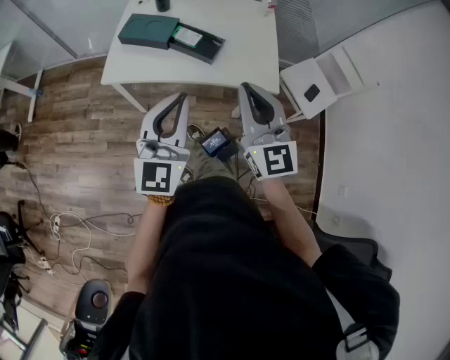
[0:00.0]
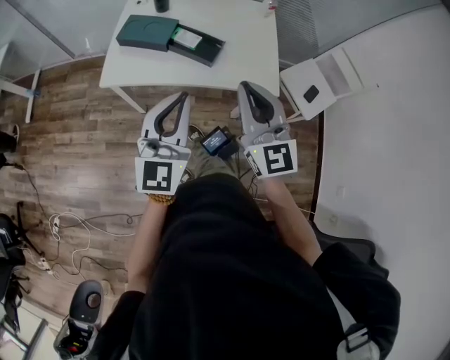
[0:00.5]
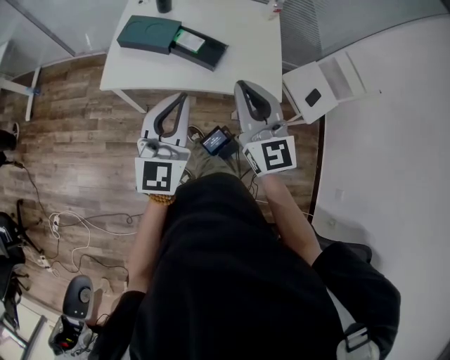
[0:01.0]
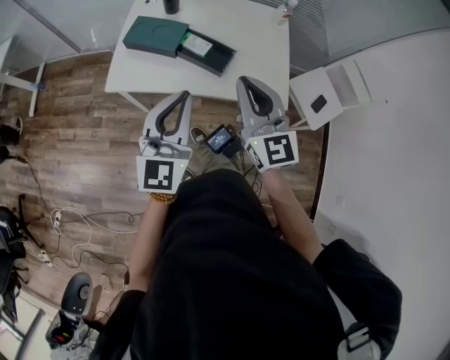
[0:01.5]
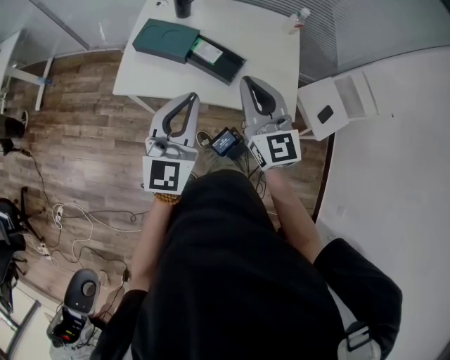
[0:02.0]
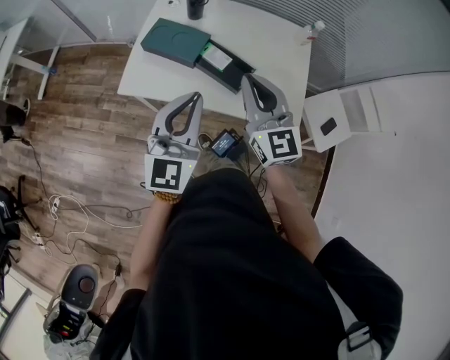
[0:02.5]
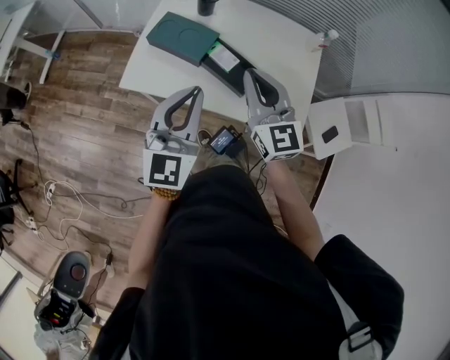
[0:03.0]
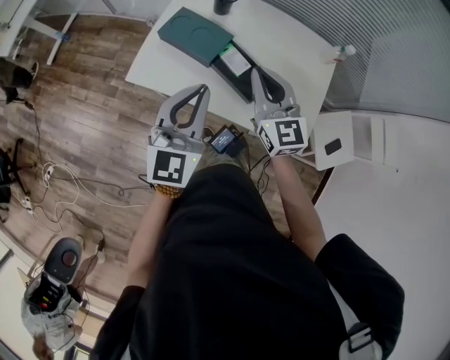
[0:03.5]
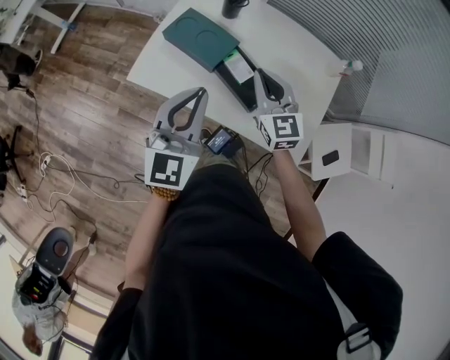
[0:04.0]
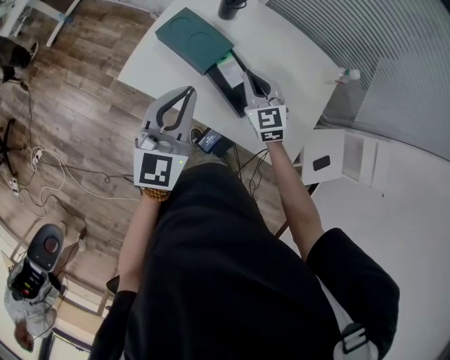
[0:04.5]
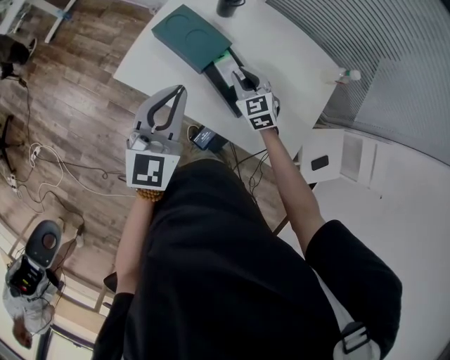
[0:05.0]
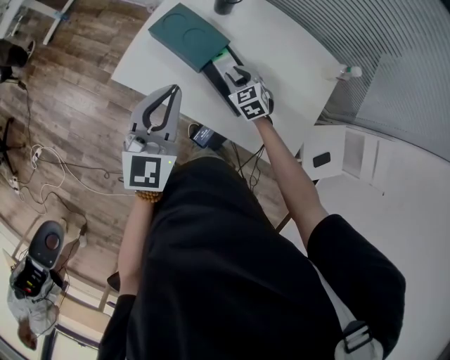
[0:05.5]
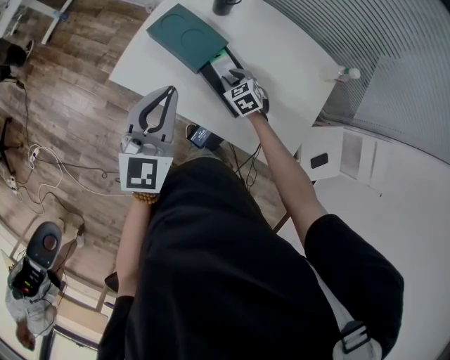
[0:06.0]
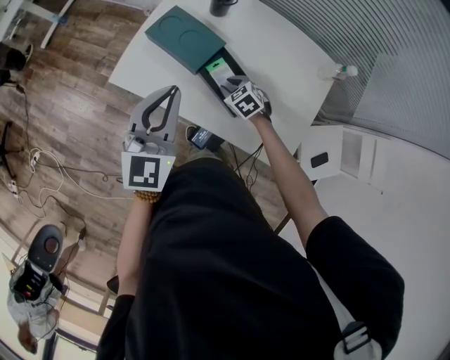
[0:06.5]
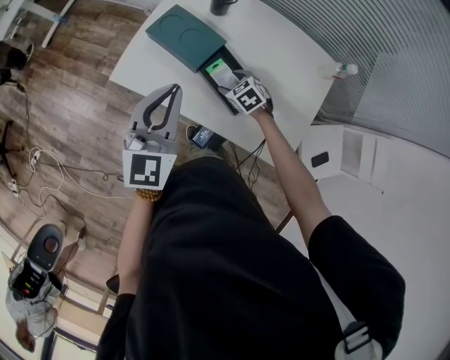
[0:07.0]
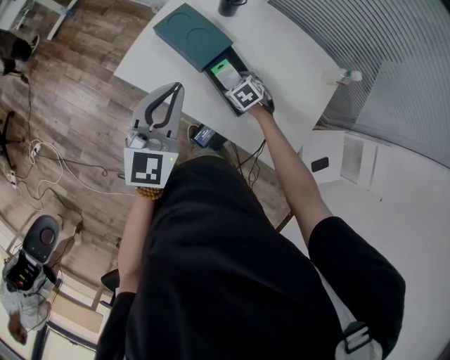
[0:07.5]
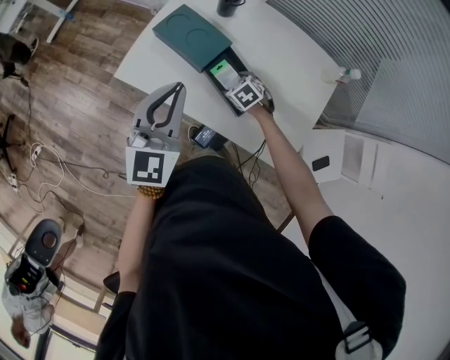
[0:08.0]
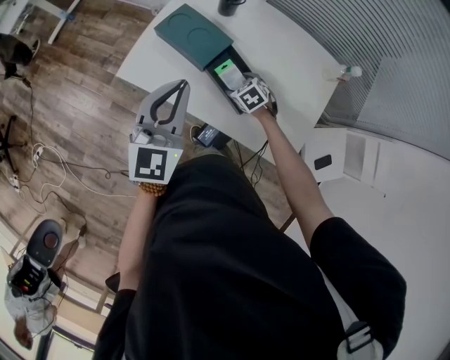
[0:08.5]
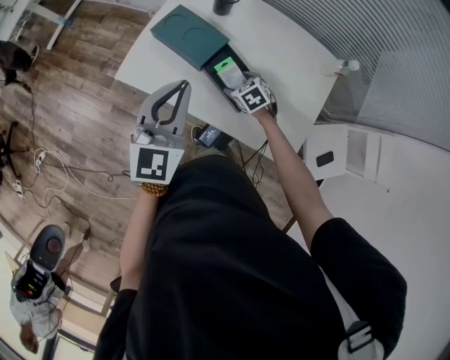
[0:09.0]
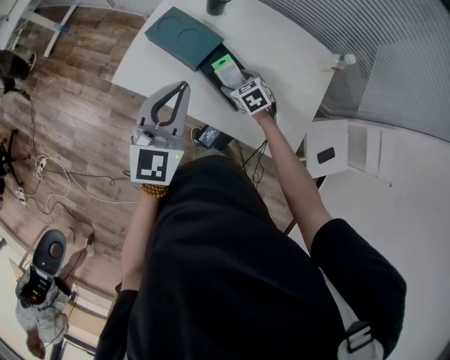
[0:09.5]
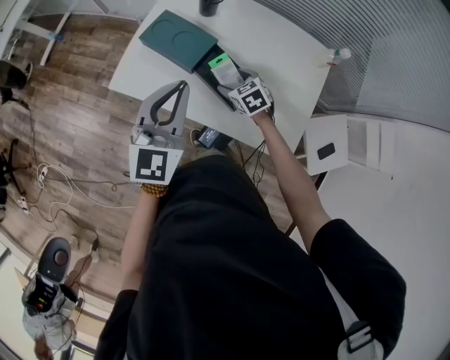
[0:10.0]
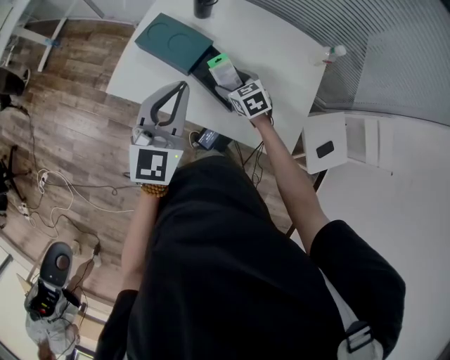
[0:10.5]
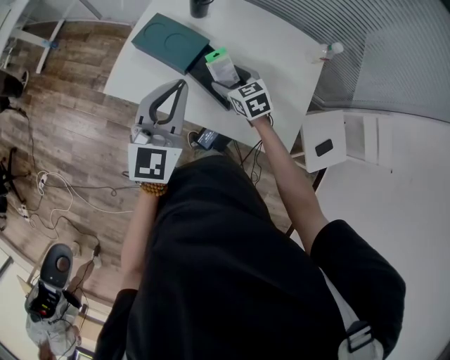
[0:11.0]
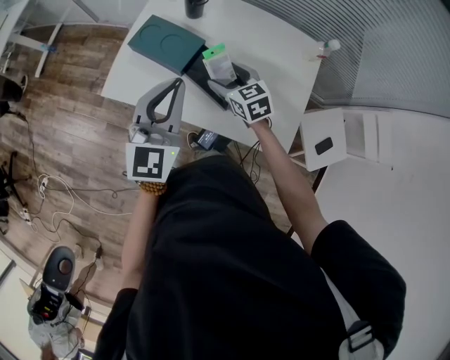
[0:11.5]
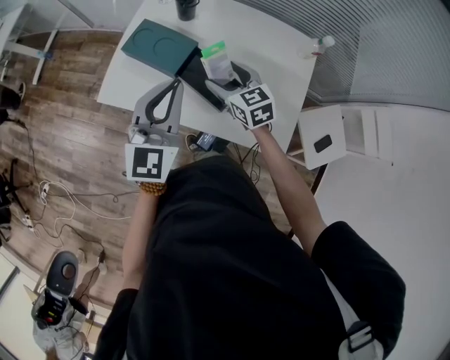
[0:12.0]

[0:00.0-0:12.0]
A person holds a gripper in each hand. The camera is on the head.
0:00.0 to 0:02.0: Both grippers move forward, about 15 cm.
0:02.0 to 0:04.0: The right gripper is displaced forward and downward by roughly 25 cm, and rotates roughly 20 degrees, while the left gripper moves forward, about 15 cm.
0:04.0 to 0:06.0: The left gripper changes place by approximately 5 cm. Meanwhile the right gripper moves downward, roughly 25 cm, and tilts its fingers roughly 40 degrees downward.
0:06.0 to 0:08.0: The right gripper opens its fingers.
0:08.0 to 0:10.0: The right gripper heads upward, covering roughly 5 cm.
0:10.0 to 0:12.0: The right gripper travels upward by approximately 10 cm, and changes its angle by some 20 degrees.

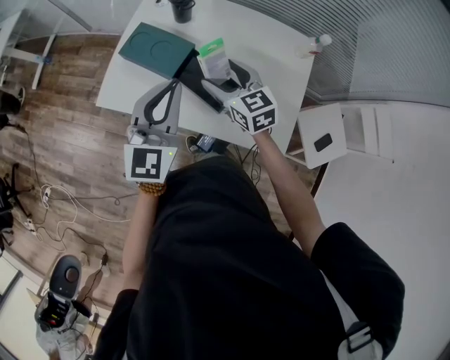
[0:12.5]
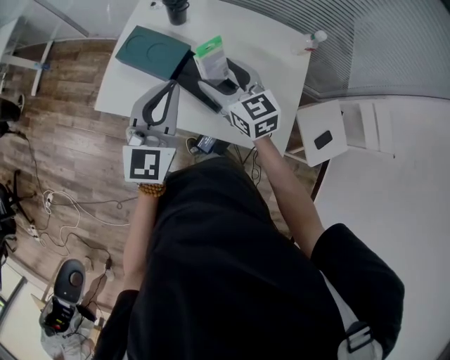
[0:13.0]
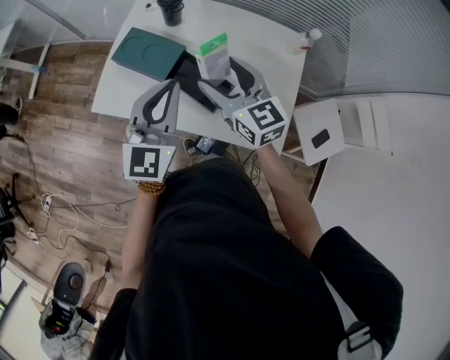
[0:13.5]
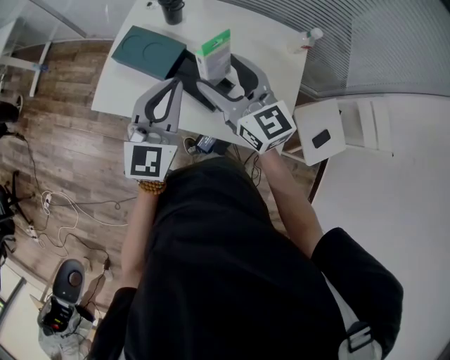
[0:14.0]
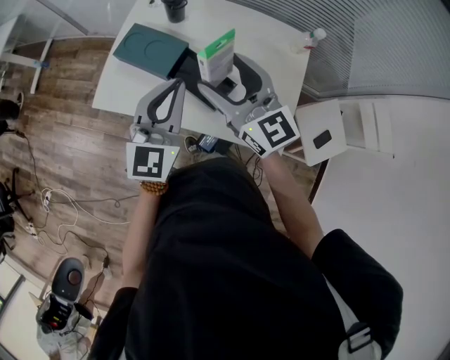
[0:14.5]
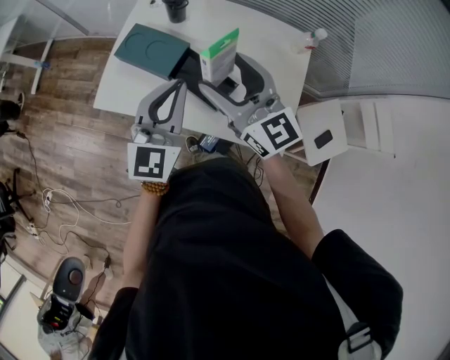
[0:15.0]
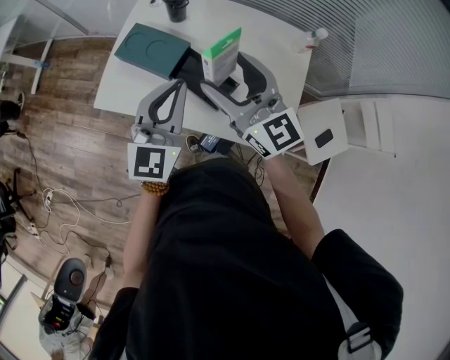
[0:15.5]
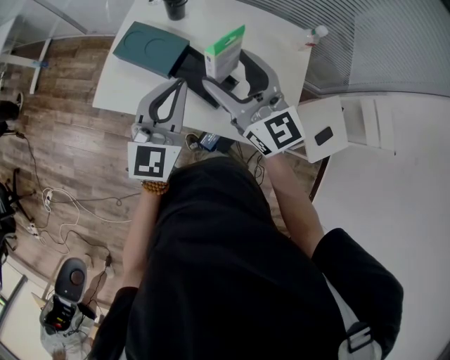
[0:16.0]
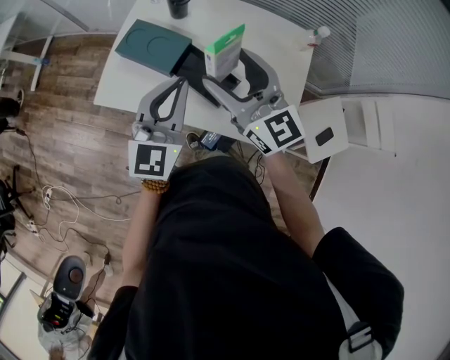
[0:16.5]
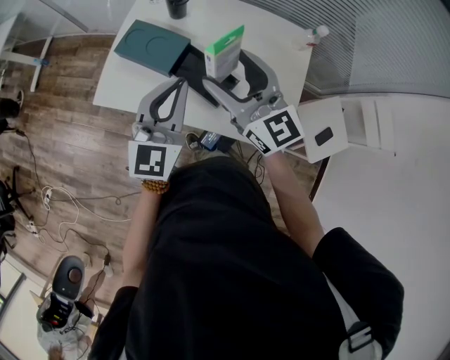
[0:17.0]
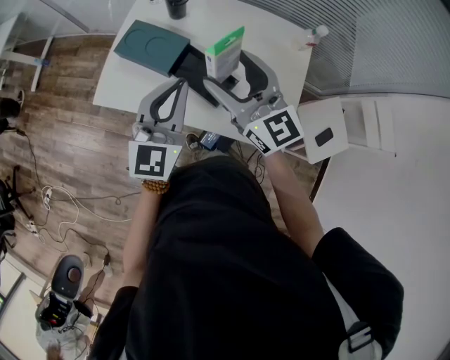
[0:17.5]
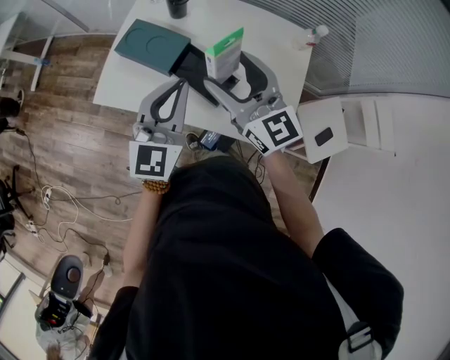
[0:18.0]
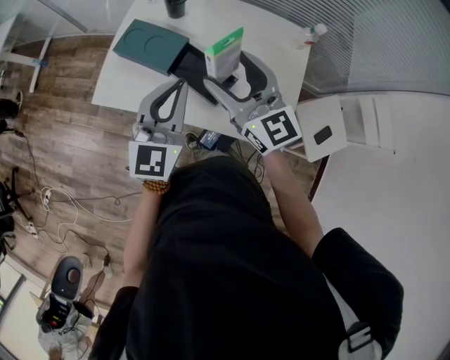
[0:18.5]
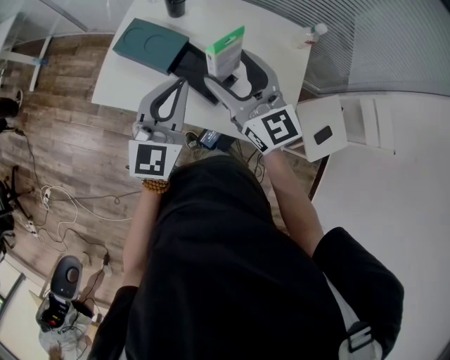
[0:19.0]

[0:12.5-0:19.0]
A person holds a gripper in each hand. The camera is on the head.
0:12.5 to 0:14.5: The right gripper heads upward, covering about 15 cm, and changes its angle by approximately 20 degrees.
0:14.5 to 0:19.0: Neither gripper changes place.

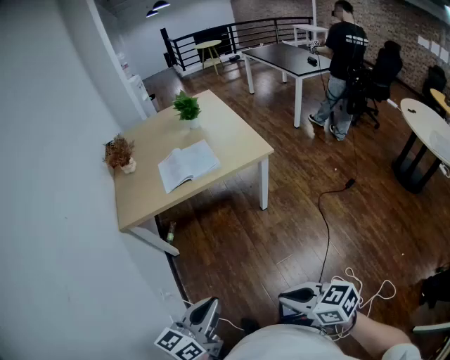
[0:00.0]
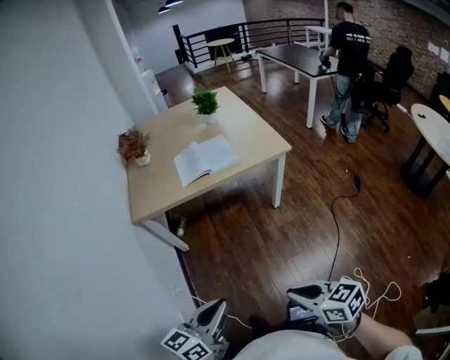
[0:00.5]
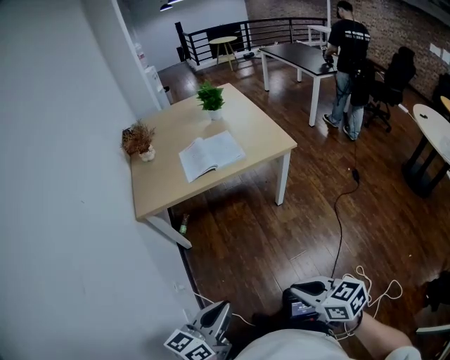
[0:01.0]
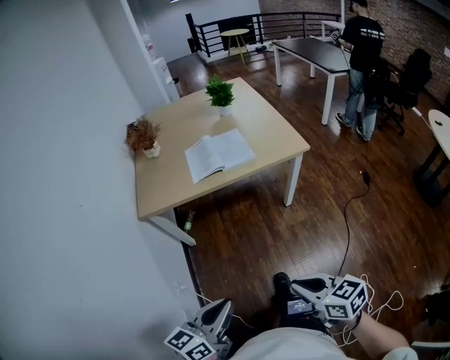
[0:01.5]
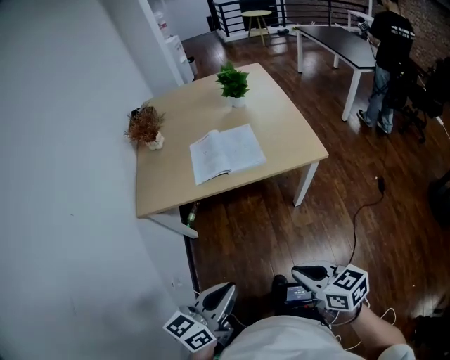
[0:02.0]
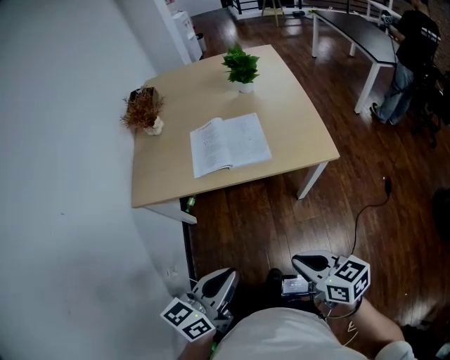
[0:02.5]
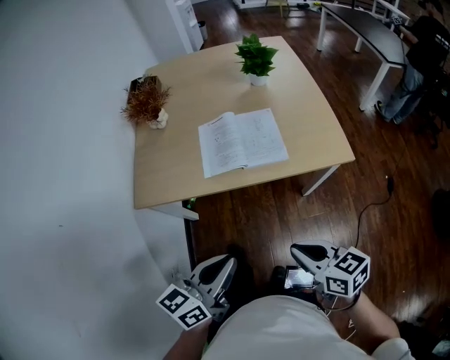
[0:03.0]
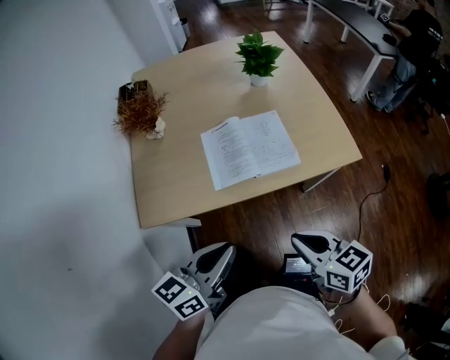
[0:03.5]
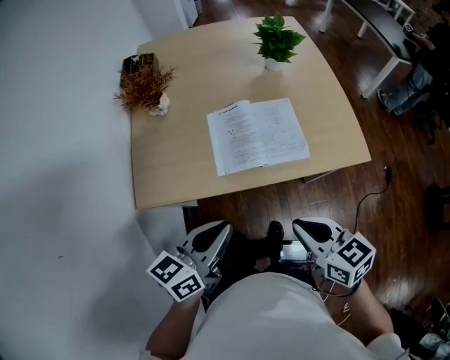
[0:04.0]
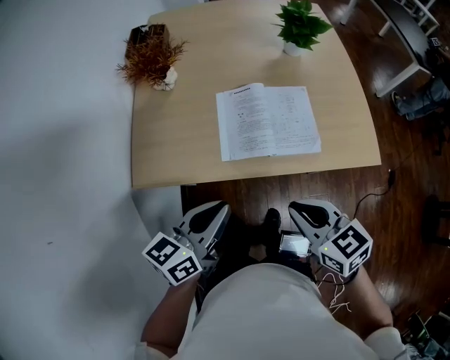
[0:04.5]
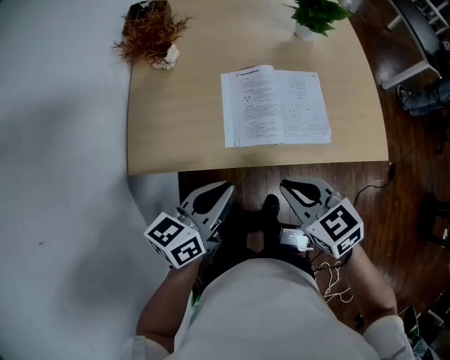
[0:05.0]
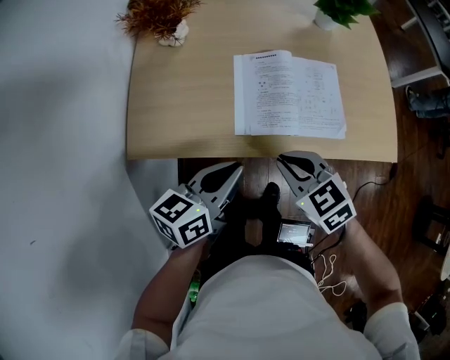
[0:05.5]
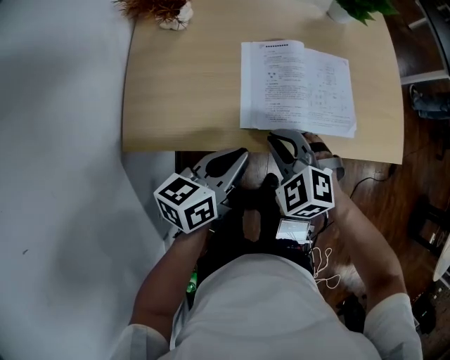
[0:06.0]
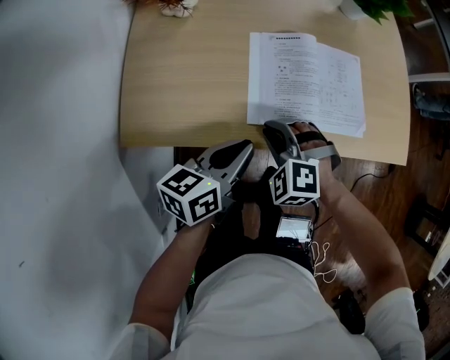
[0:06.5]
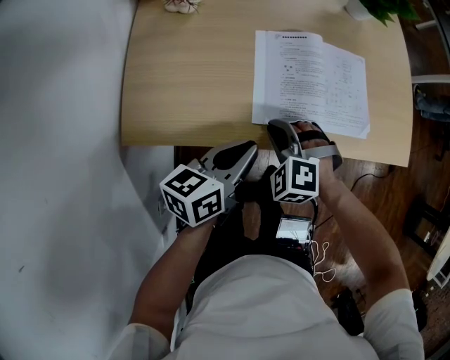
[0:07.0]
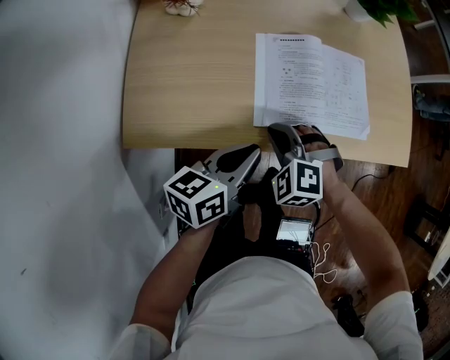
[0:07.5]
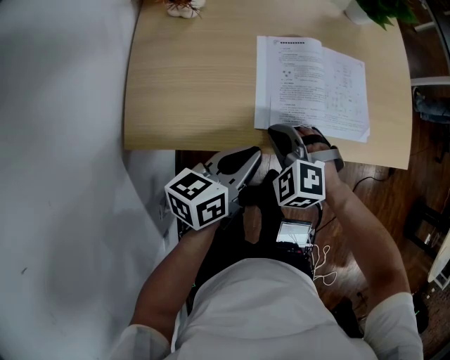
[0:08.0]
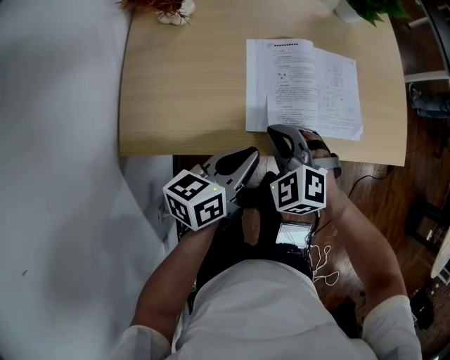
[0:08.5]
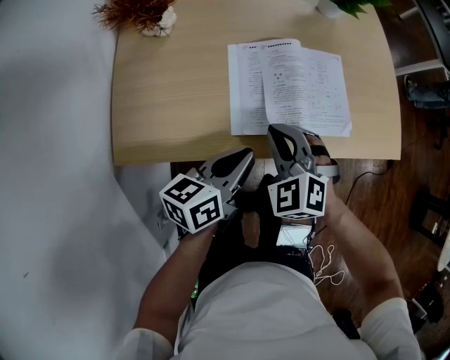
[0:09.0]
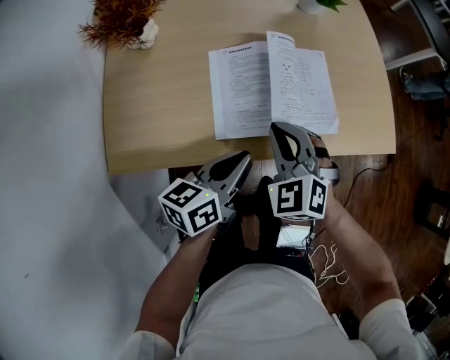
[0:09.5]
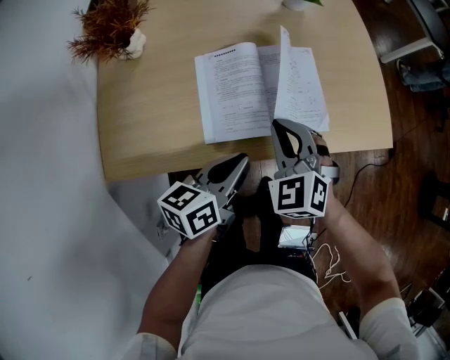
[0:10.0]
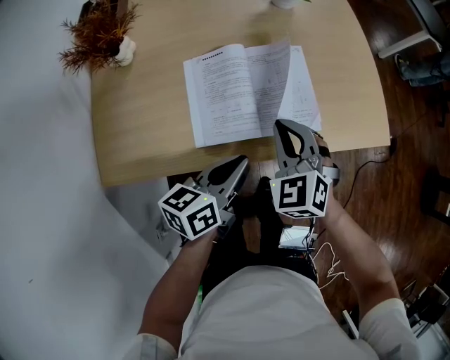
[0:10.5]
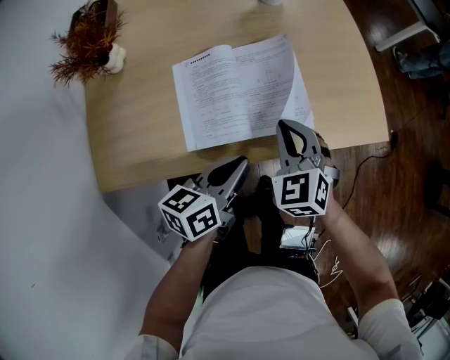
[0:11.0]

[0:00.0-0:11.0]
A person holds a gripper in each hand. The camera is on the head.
0:00.0 to 0:02.0: Both grippers move forward, approximately 20 cm.
0:02.0 to 0:03.5: The right gripper is displaced forward and to the left by roughly 25 cm. The left gripper heads forward, covering approximately 25 cm.
0:03.5 to 0:05.5: The left gripper moves forward and downward, some 15 cm; the right gripper moves forward, downward and to the left, approximately 20 cm, and turns by approximately 40 degrees.
0:05.5 to 0:07.5: The left gripper goes approximately 5 cm downward. The right gripper shifts approximately 10 cm downward and to the left, and rotates around the line of its fingers by roughly 40 degrees, counterclockwise from behind.
0:07.5 to 0:09.0: The right gripper moves upward, roughly 5 cm, and turns by some 20 degrees.
0:09.0 to 0:11.0: The left gripper shifts some 10 cm to the right. The right gripper travels to the right and forward by approximately 15 cm, and changes its angle by approximately 20 degrees.
